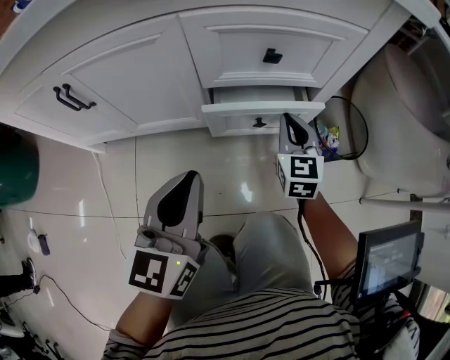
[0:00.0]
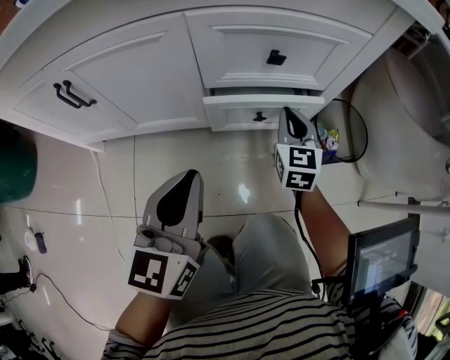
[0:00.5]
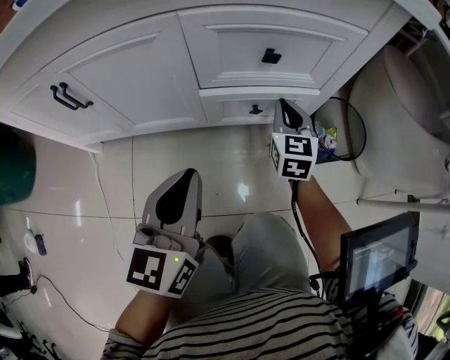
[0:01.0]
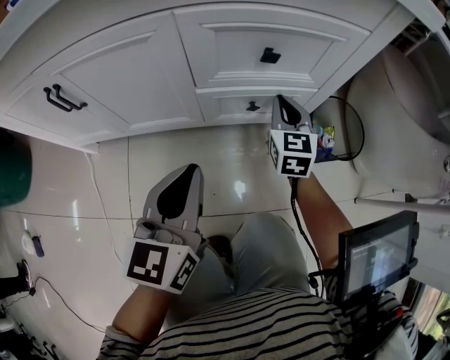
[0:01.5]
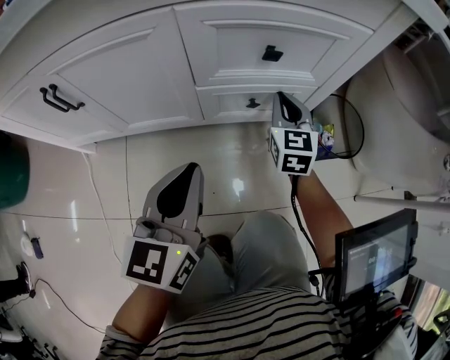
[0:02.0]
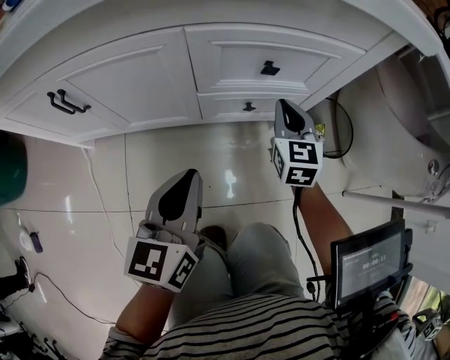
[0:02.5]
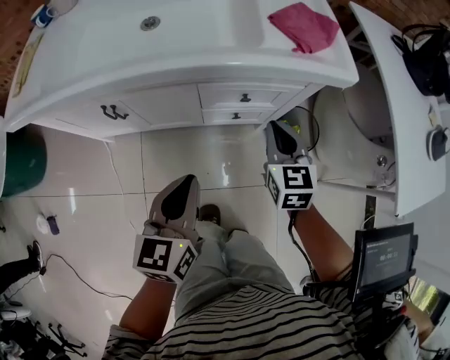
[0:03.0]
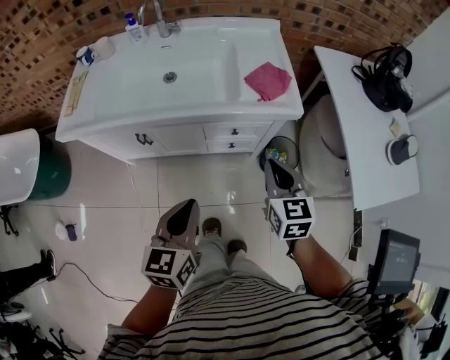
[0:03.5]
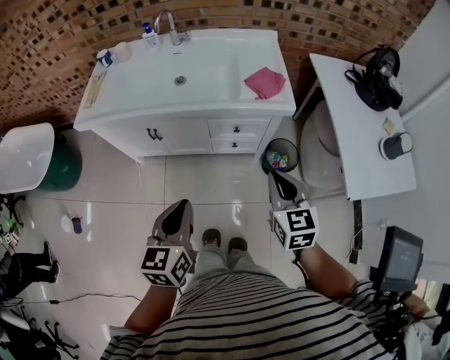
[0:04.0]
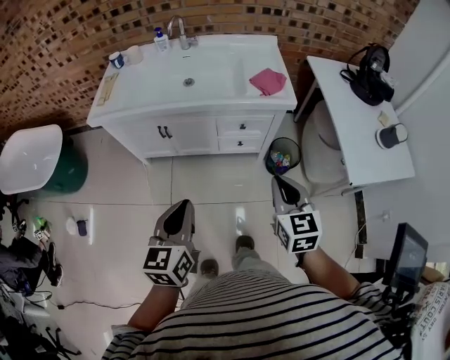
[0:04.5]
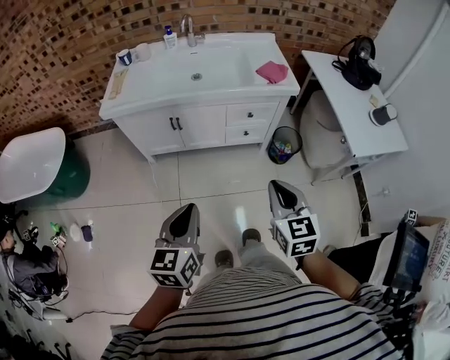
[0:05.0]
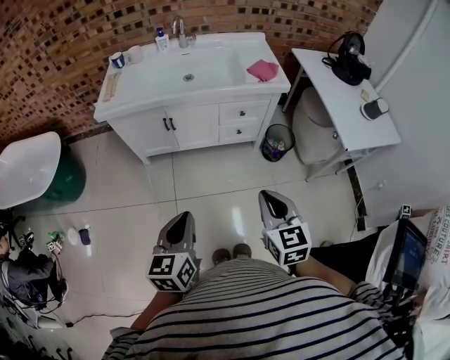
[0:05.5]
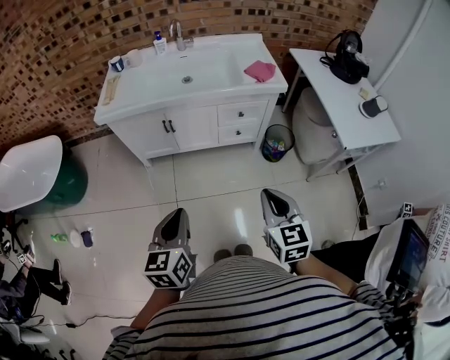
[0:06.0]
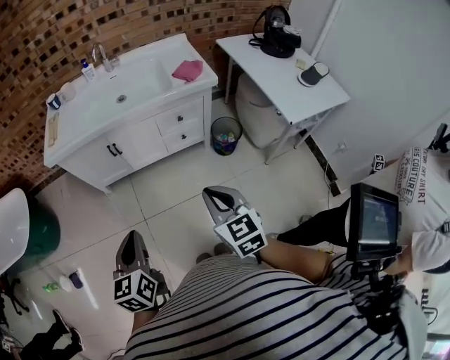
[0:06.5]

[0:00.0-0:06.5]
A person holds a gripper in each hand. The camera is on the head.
0:00.0 to 0:02.0: The right gripper shifts some 5 cm forward.
0:02.0 to 0:04.5: The two grippers go about 60 cm upward and backward.
0:04.5 to 0:06.5: Both grippers travel together backward and to the left, about 20 cm.

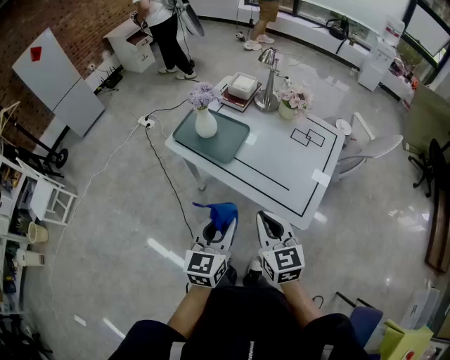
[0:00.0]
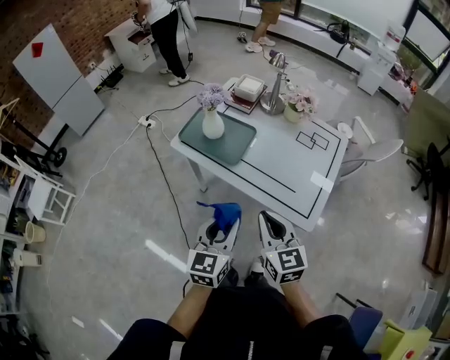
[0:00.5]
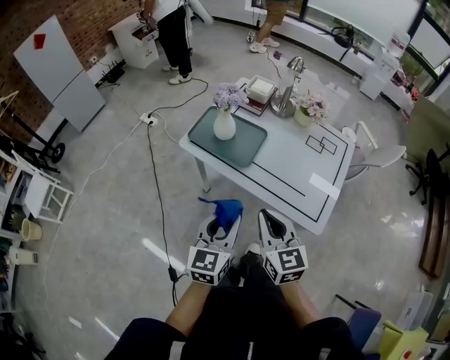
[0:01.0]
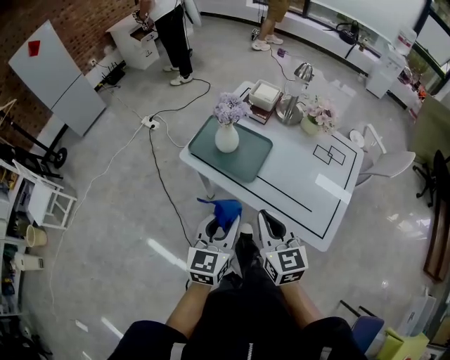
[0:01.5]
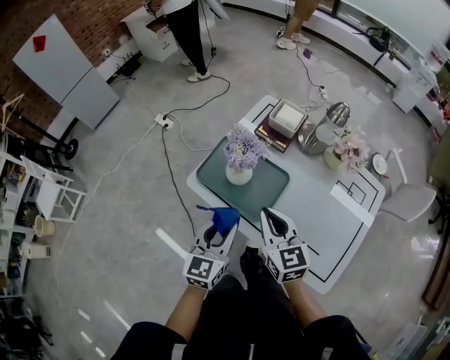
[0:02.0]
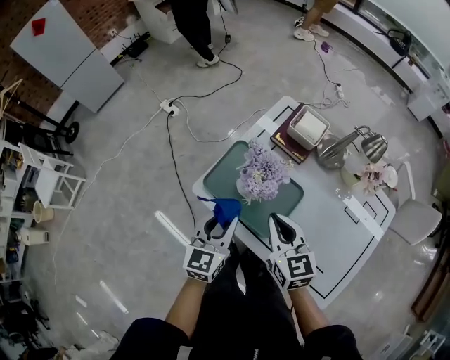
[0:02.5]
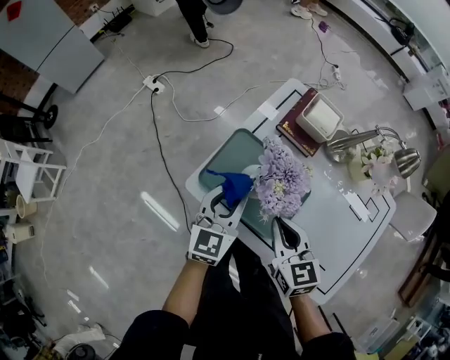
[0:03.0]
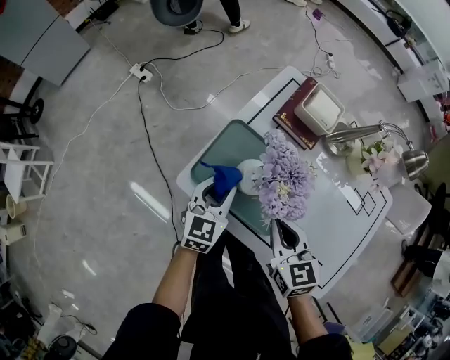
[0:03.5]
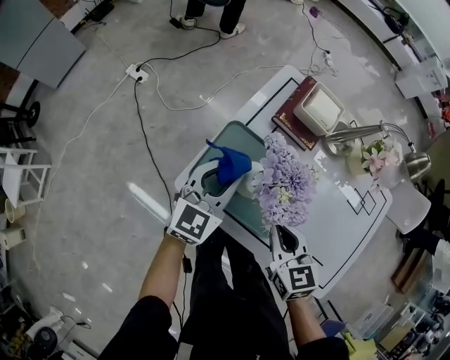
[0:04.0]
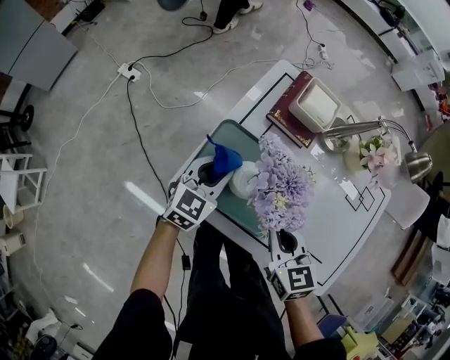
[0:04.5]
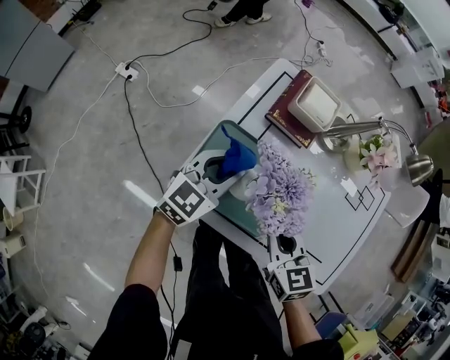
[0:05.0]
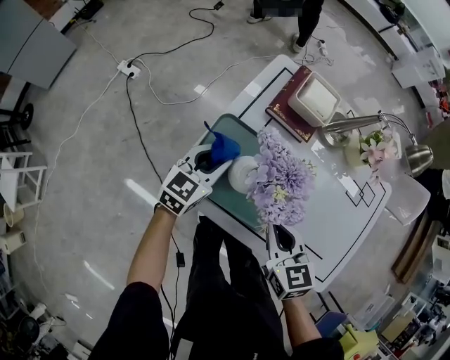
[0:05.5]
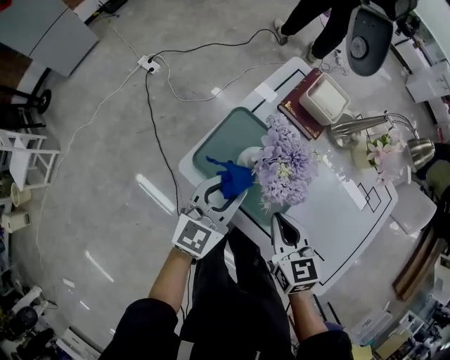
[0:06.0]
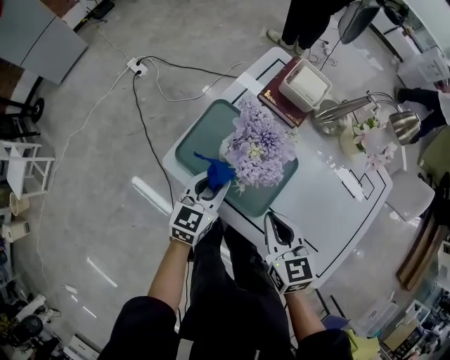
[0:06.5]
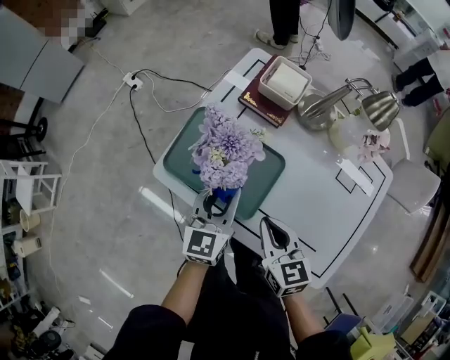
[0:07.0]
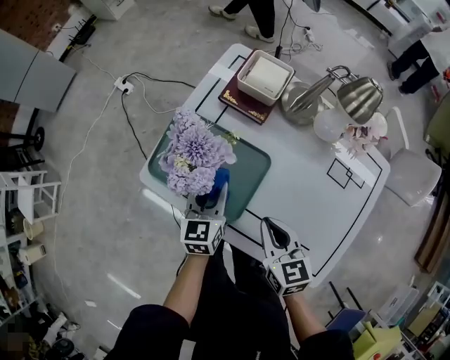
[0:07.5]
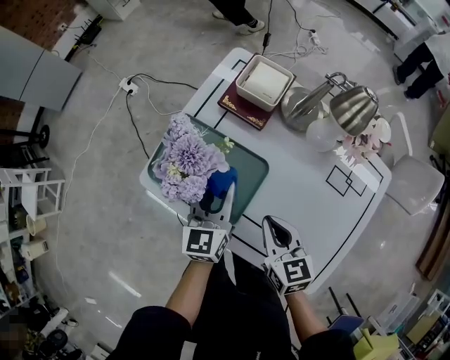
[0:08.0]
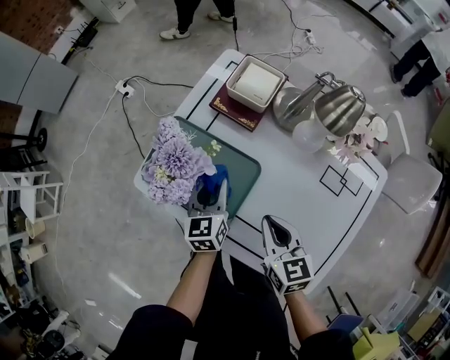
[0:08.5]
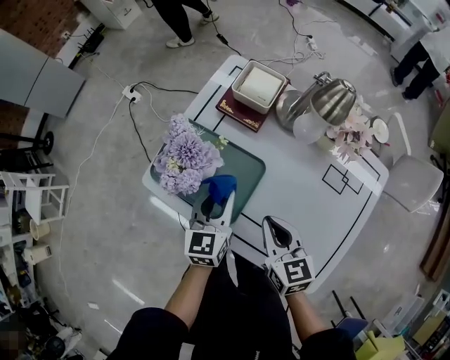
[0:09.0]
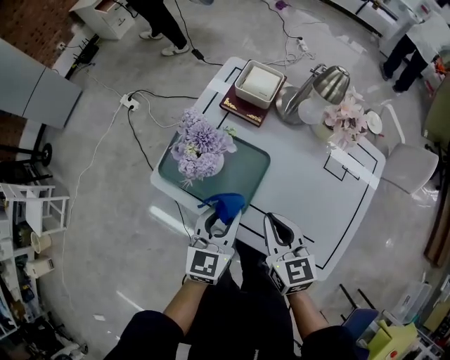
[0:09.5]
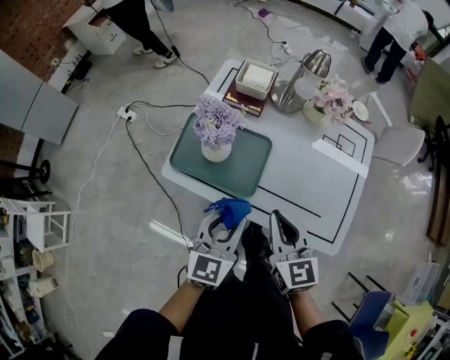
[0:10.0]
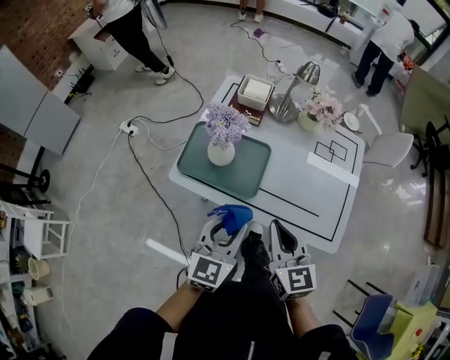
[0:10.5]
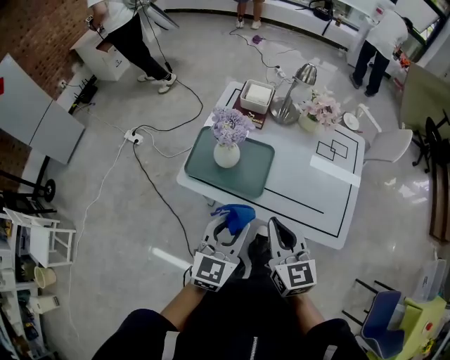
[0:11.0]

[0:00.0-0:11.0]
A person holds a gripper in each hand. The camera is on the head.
0:00.0 to 0:02.0: The left gripper travels forward and to the left by approximately 30 cm. The right gripper goes approximately 30 cm forward.
0:02.0 to 0:03.5: The left gripper shifts approximately 25 cm forward and downward. Meanwhile the right gripper travels downward and forward by approximately 15 cm.
0:03.5 to 0:05.5: The left gripper goes up and down, approximately 10 cm each way, reversing 3 times.
0:05.5 to 0:07.5: The right gripper travels to the right by some 10 cm. Meanwhile the left gripper travels to the right and backward by about 15 cm, and rotates some 30 degrees.
0:07.5 to 0:09.0: The left gripper moves up and down over approximately 5 cm, changing direction 2 times.
0:09.0 to 0:11.0: The right gripper heads backward, upward and to the left, covering some 25 cm, and changes its angle by some 20 degrees. Meanwhile the left gripper moves backward and upward, approximately 25 cm, and rotates approximately 30 degrees.

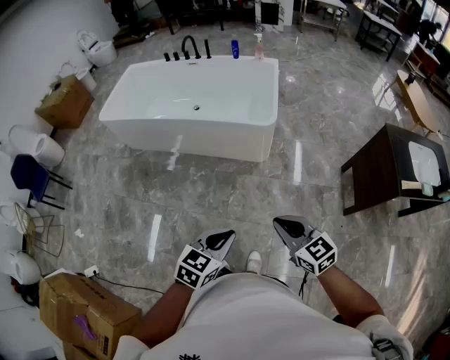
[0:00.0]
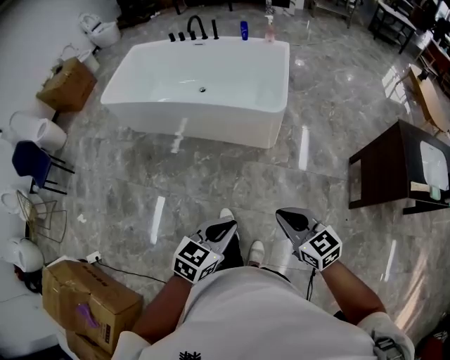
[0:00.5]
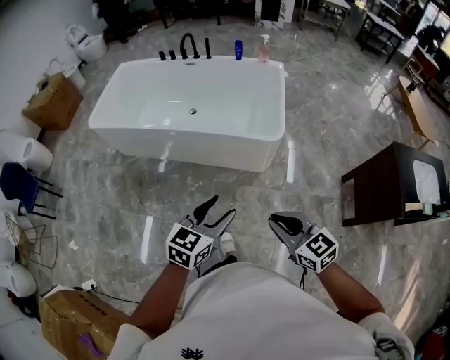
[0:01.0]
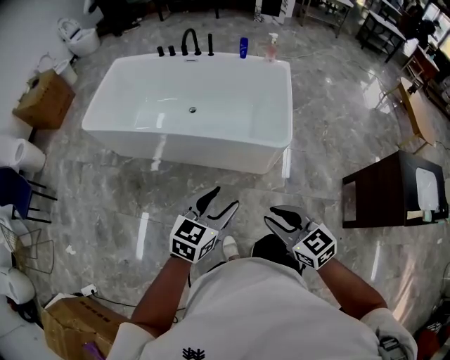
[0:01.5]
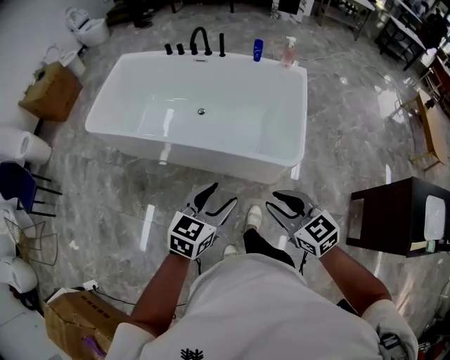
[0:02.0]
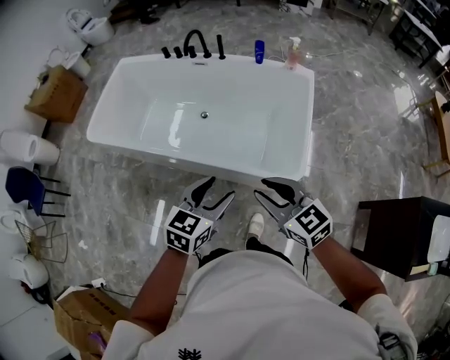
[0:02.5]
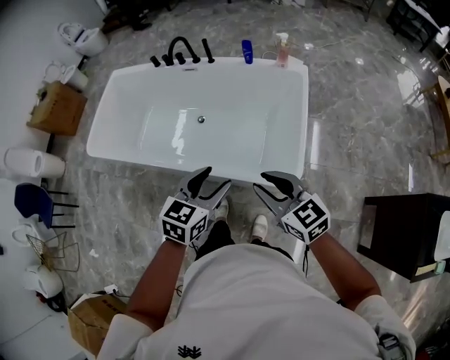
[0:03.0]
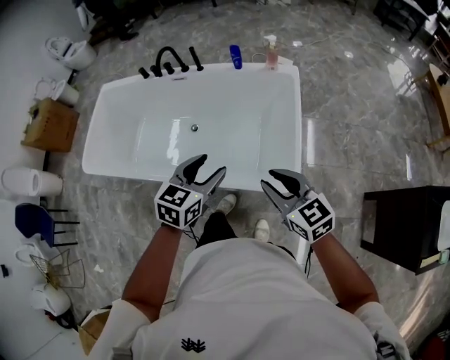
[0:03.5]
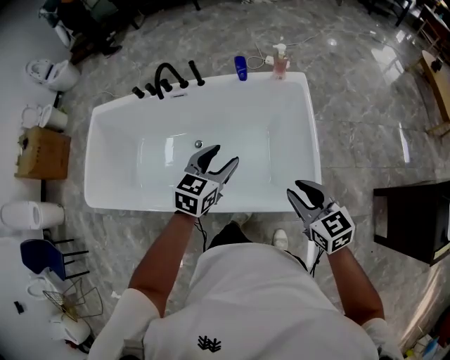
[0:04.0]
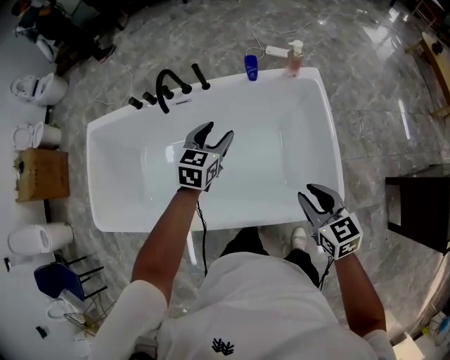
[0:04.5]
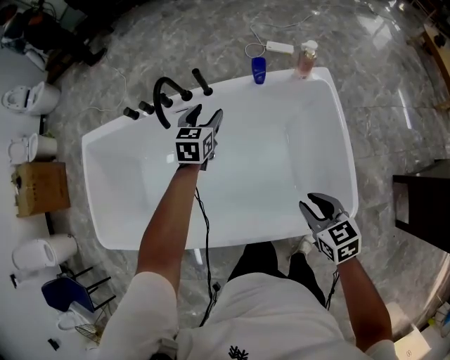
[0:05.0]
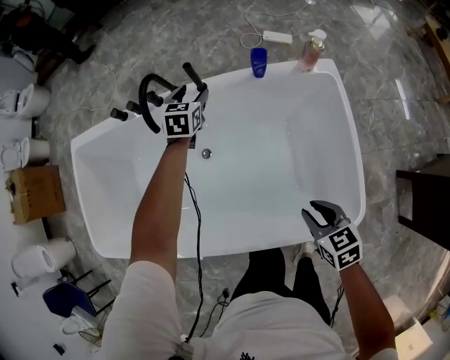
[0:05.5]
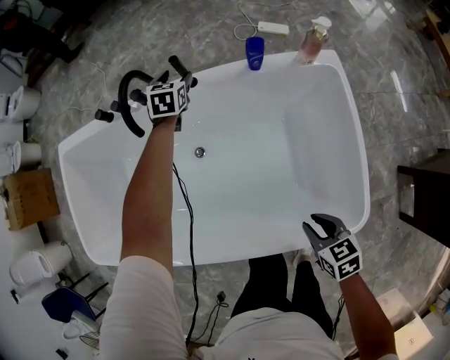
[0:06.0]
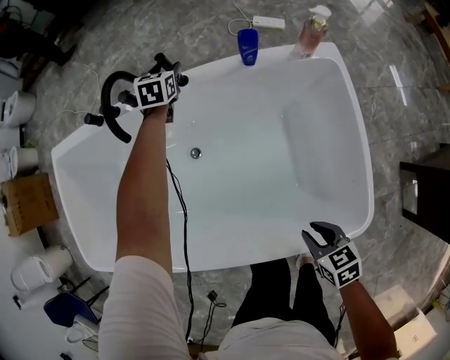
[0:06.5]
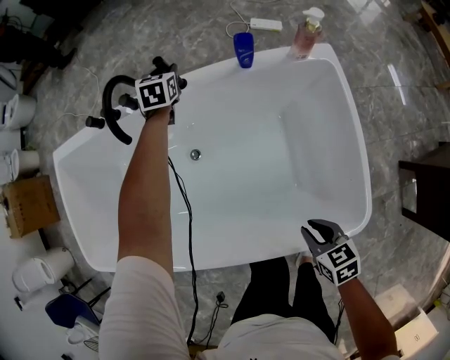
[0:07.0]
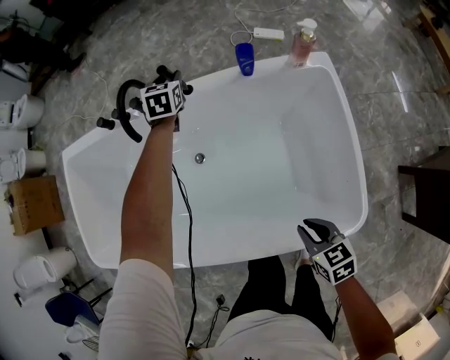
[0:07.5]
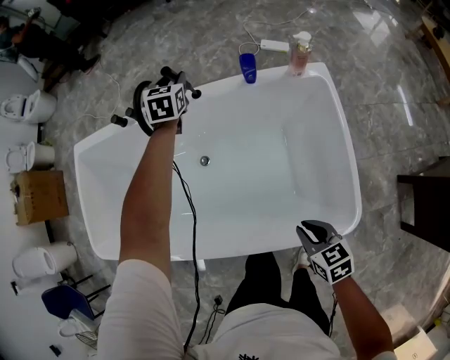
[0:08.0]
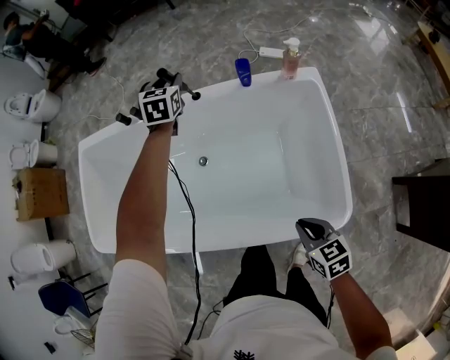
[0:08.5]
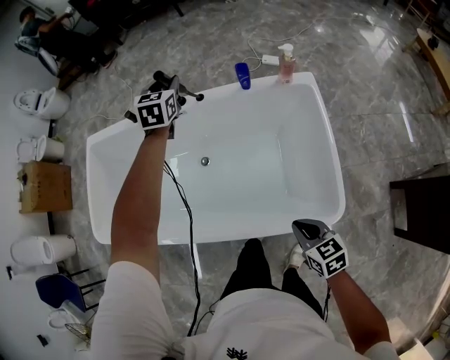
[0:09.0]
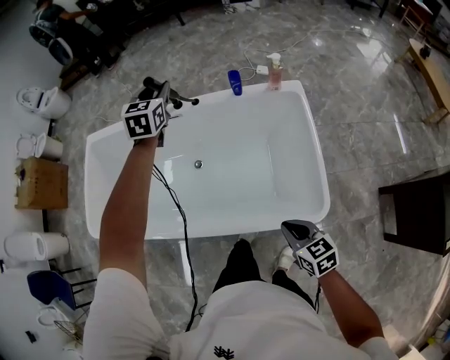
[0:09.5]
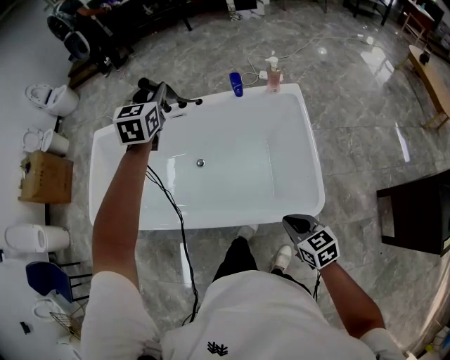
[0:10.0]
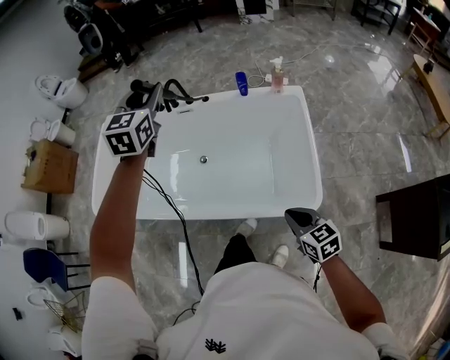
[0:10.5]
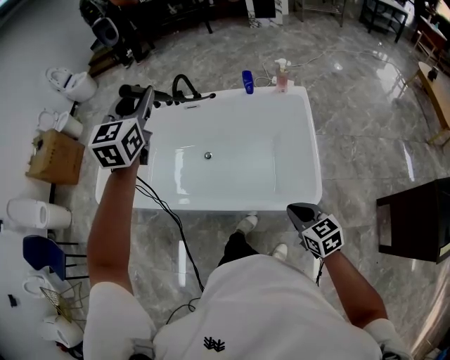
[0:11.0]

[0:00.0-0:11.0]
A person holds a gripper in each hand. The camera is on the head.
0:00.0 to 0:02.0: Both grippers are carried forward, some 50 cm. The right gripper opens up; the left gripper opens.
0:02.0 to 0:03.5: The grippers both shift forward and to the right by approximately 30 cm.
0:03.5 to 0:05.5: The right gripper is displaced forward, downward and to the left by approximately 35 cm, and points its fingers some 30 degrees further downward; the left gripper shifts approximately 60 cm forward.
0:05.5 to 0:07.5: The left gripper travels forward by about 10 cm, and closes its fingers, while the right gripper shifts some 5 cm downward.
0:07.5 to 0:09.0: The right gripper travels backward and upward by about 15 cm; the left gripper heads upward and backward, covering some 25 cm.
0:09.0 to 0:11.0: The left gripper travels backward and upward by roughly 40 cm. Meanwhile the right gripper travels backward and upward by some 15 cm.
